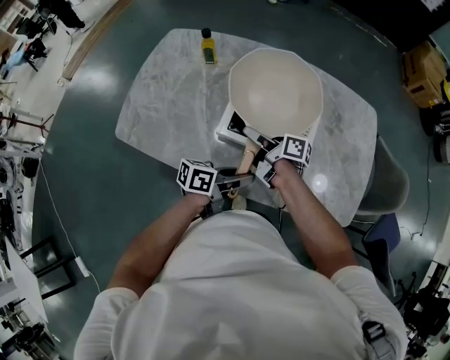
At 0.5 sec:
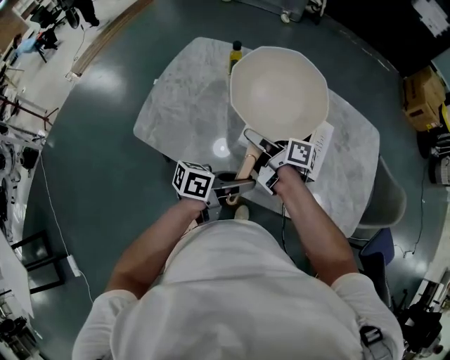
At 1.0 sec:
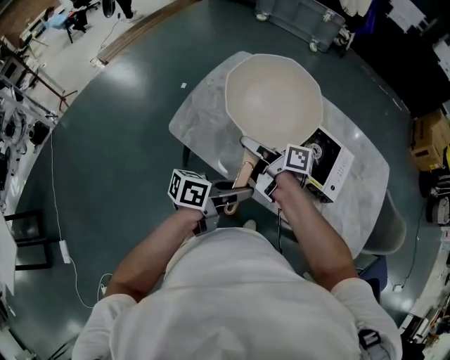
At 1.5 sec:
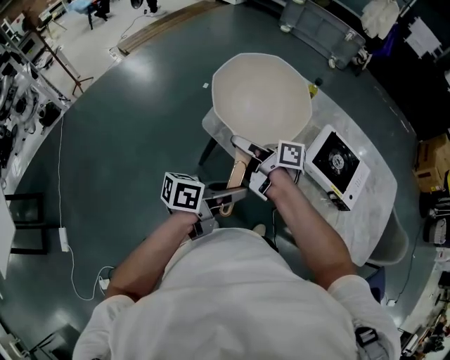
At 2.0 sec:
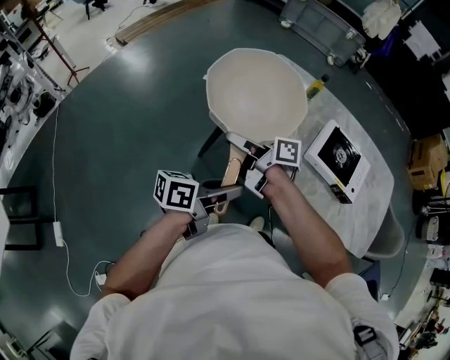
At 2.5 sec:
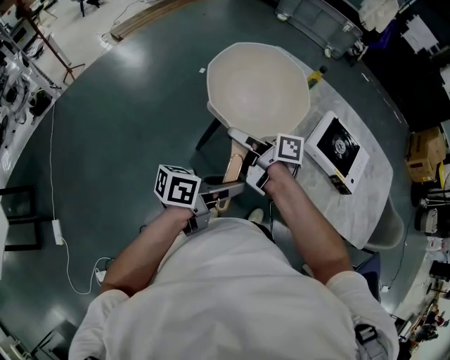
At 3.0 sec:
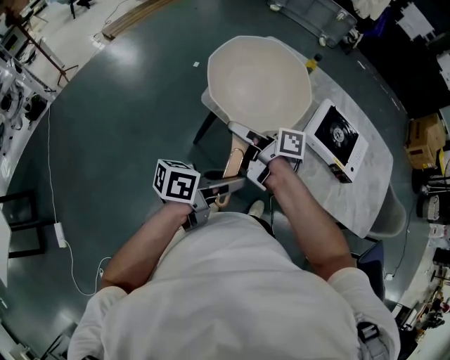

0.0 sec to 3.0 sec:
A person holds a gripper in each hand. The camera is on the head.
0.0 sec to 1.5 sec: The two grippers go roughly 35 cm to the left. The right gripper rotates about 20 degrees; the left gripper changes its angle by approximately 20 degrees.
1.5 sec to 3.0 sec: The right gripper moves approximately 5 cm. The left gripper shifts by approximately 5 cm.

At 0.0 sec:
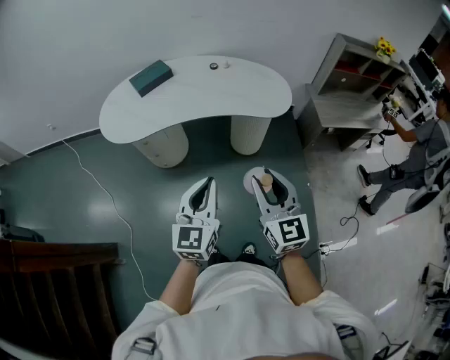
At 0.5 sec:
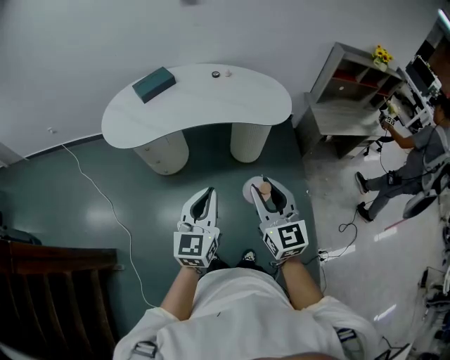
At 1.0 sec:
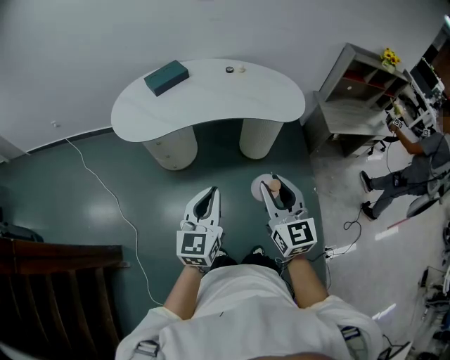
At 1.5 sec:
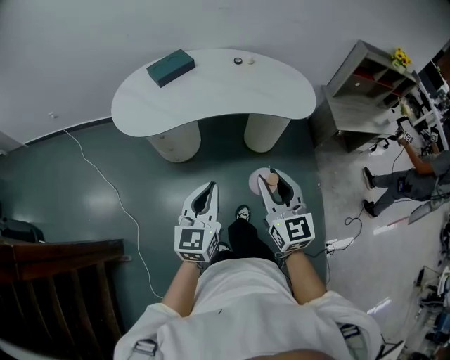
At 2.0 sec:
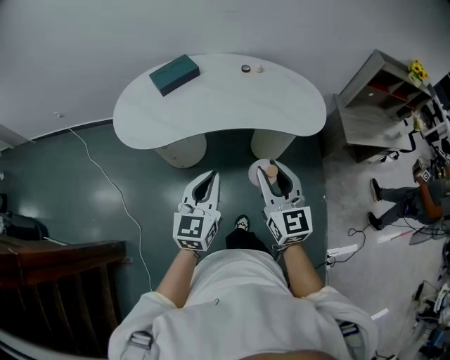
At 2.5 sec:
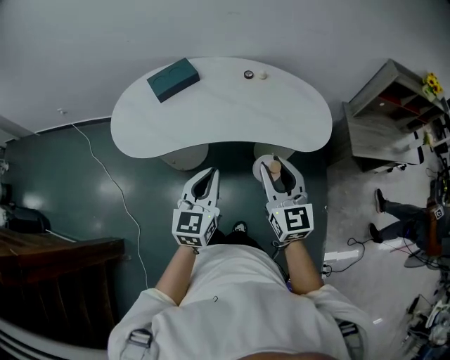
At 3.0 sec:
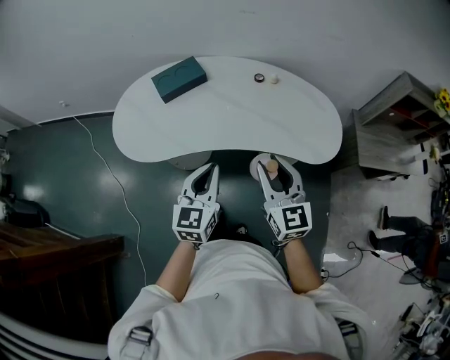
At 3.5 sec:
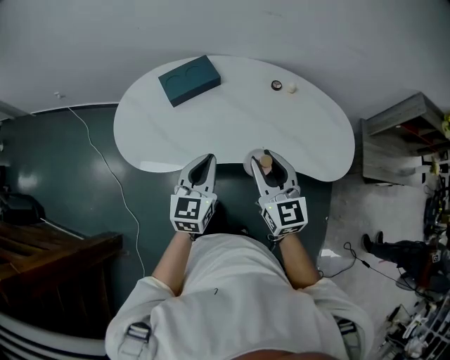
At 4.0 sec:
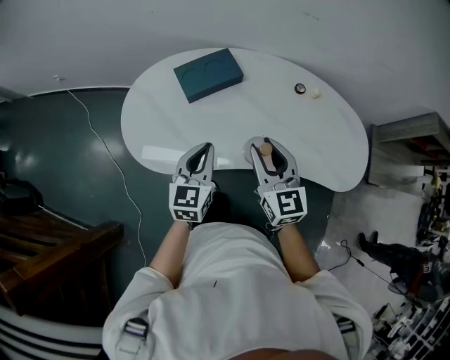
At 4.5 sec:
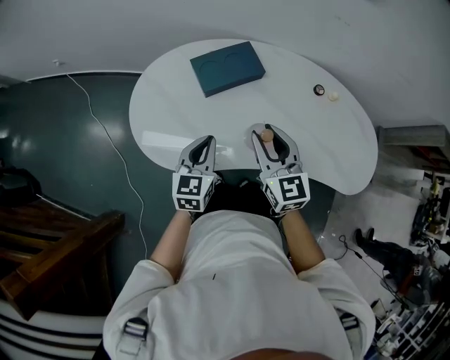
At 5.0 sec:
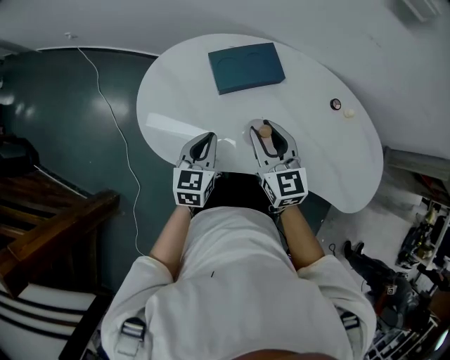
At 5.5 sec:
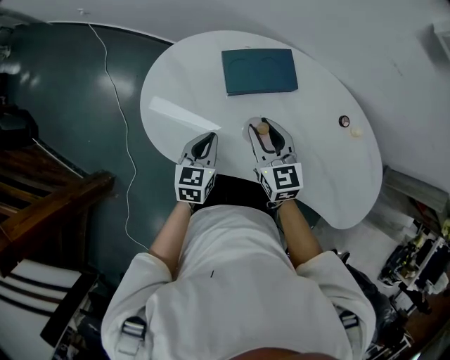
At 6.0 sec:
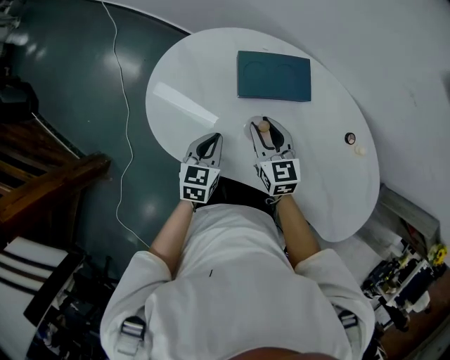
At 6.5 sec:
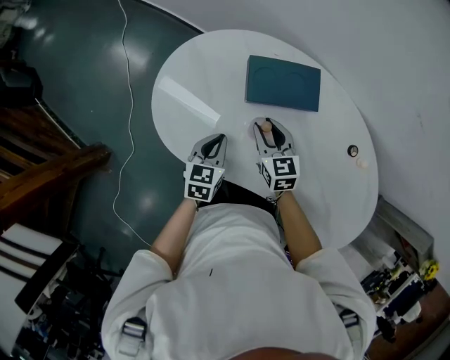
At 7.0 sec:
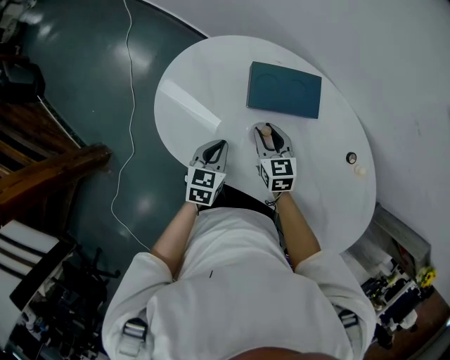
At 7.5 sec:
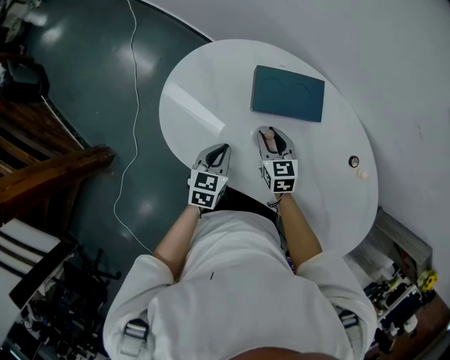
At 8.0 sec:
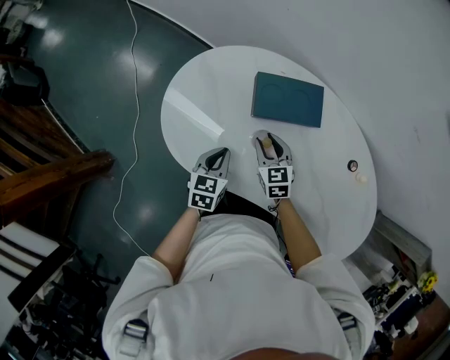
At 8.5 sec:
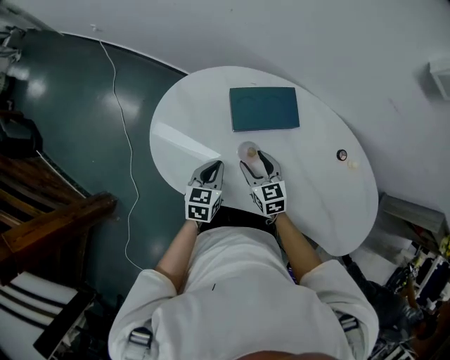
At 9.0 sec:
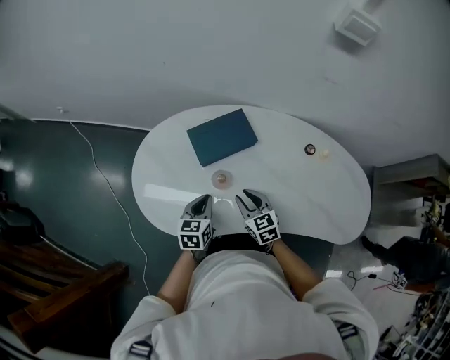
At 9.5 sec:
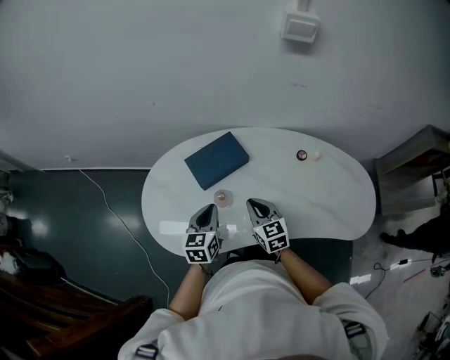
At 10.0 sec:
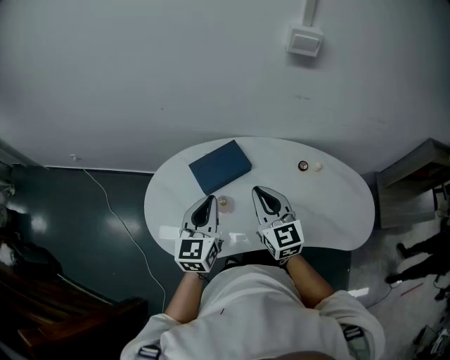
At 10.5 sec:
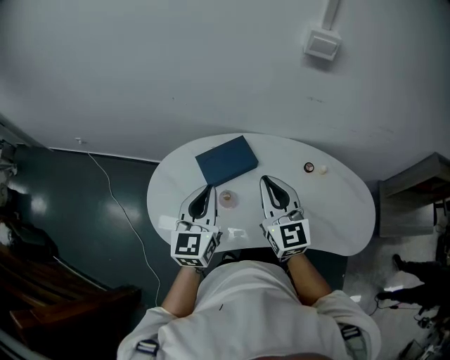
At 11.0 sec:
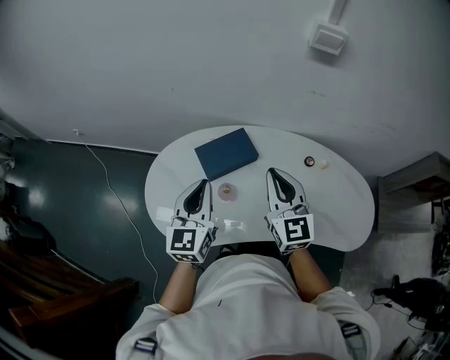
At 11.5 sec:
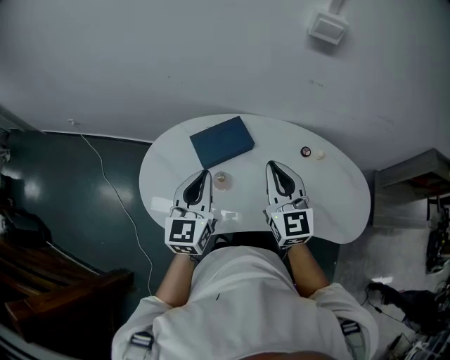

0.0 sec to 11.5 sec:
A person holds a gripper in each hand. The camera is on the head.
0.0 sec to 2.0 sec: Both grippers move forward and to the left, some 20 cm.
2.0 sec to 4.0 sec: Both grippers move forward and to the left, roughly 40 cm.
4.0 sec to 6.0 sec: The left gripper goes roughly 20 cm downward, forward and to the left, and changes its angle by some 30 degrees; the right gripper heads forward, downward and to the left, covering roughly 25 cm, and rotates approximately 30 degrees.
6.0 sec to 7.5 sec: The right gripper is displaced downward by roughly 5 cm.
7.5 sec to 9.5 sec: The right gripper is displaced upward, to the right and backward by about 15 cm, swivels approximately 30 degrees, and closes its fingers; the left gripper moves upward and to the right, roughly 15 cm, and swivels approximately 20 degrees.
9.5 sec to 11.5 sec: The grippers both shift upward by about 20 cm. The left gripper turns by about 20 degrees; the right gripper swivels some 20 degrees.

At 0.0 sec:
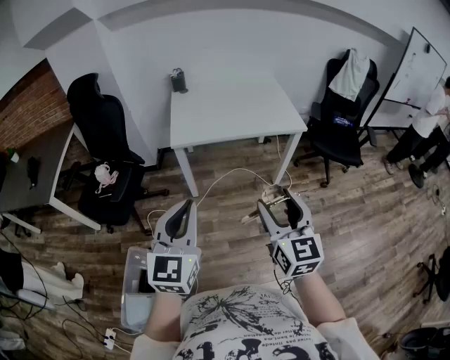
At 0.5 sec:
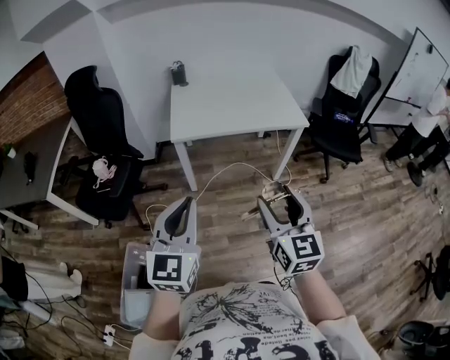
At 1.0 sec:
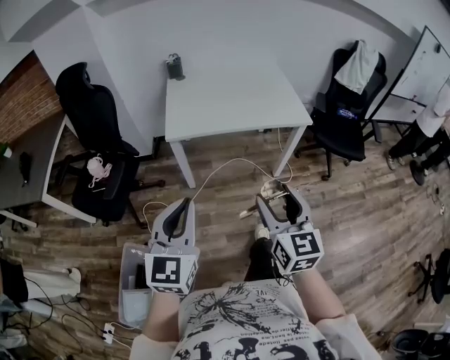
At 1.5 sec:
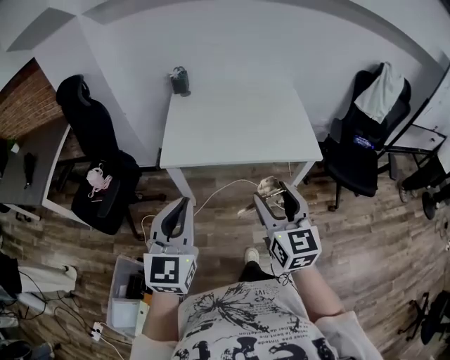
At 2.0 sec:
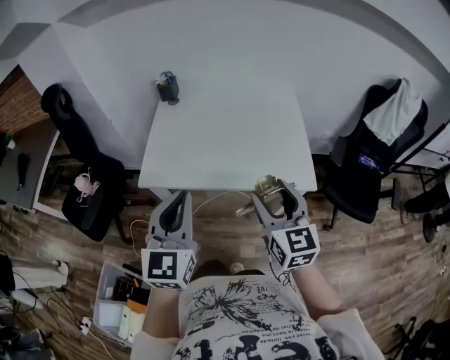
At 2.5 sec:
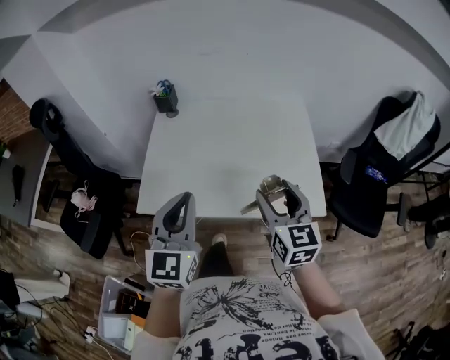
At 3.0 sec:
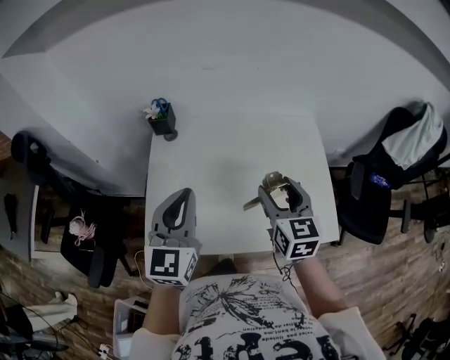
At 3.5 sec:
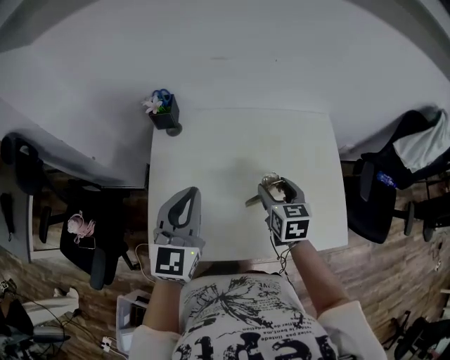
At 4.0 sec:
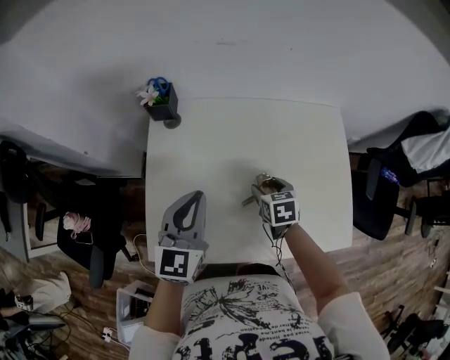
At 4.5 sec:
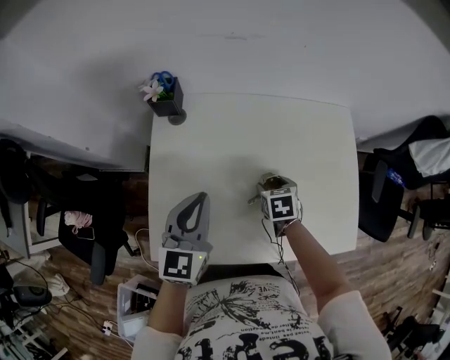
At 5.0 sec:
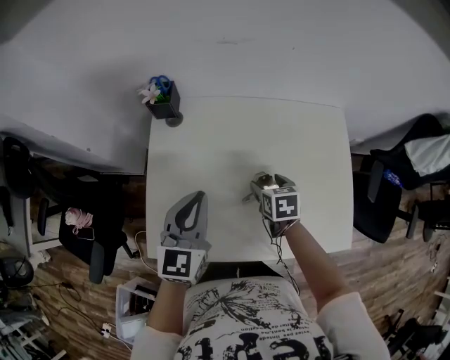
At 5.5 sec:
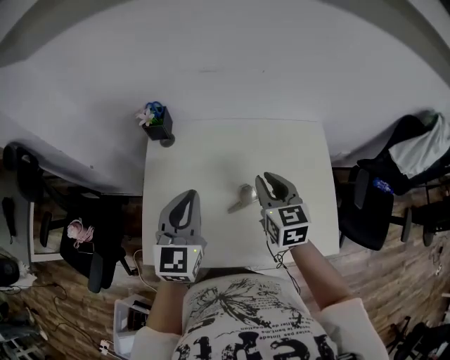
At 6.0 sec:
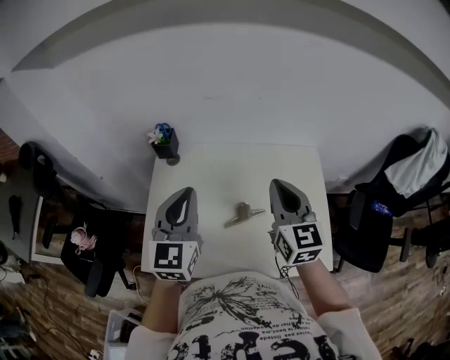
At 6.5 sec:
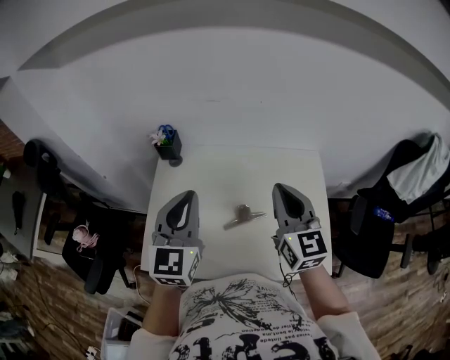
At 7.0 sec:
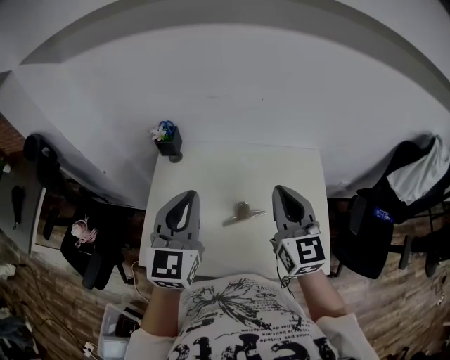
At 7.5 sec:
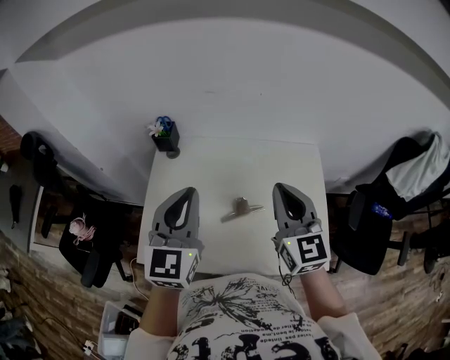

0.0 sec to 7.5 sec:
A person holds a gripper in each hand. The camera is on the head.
0.0 sec to 2.0 sec: The two grippers travel together, forward, some 40 cm.
2.0 sec to 4.0 sec: The right gripper is displaced forward and downward by approximately 50 cm, and points its fingers approximately 40 degrees further downward. Meanwhile the left gripper goes about 40 cm forward.
4.0 sec to 5.5 sec: The left gripper heads upward, covering roughly 5 cm; the right gripper travels upward by about 20 cm, changes its angle by about 30 degrees, and closes up.
5.5 sec to 7.5 sec: Both grippers move upward, about 10 cm. The right gripper turns by about 20 degrees.

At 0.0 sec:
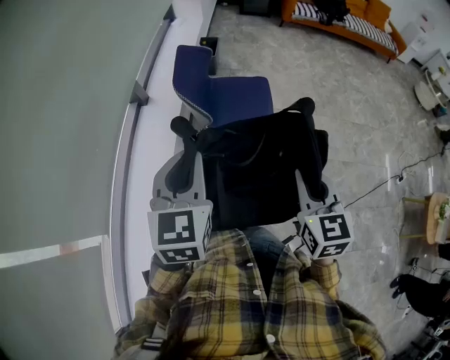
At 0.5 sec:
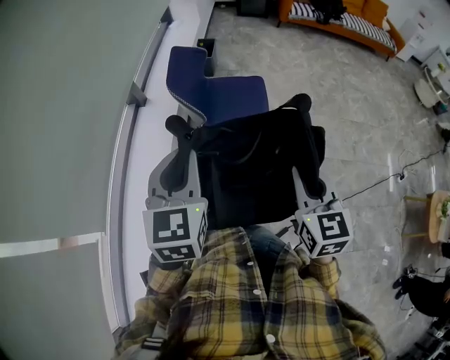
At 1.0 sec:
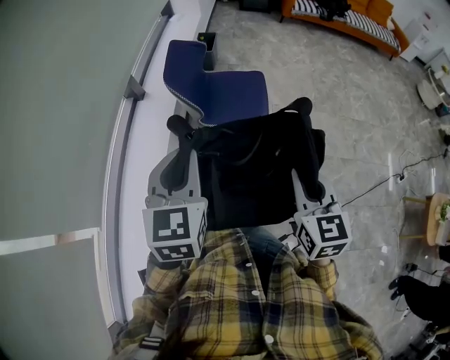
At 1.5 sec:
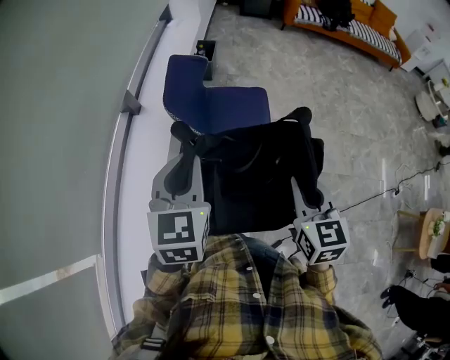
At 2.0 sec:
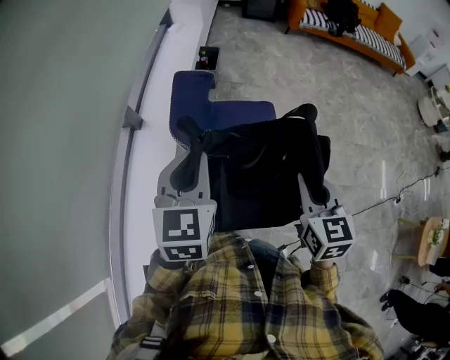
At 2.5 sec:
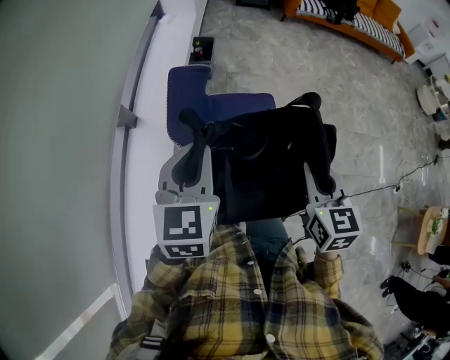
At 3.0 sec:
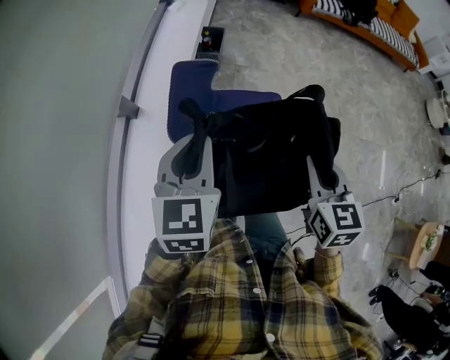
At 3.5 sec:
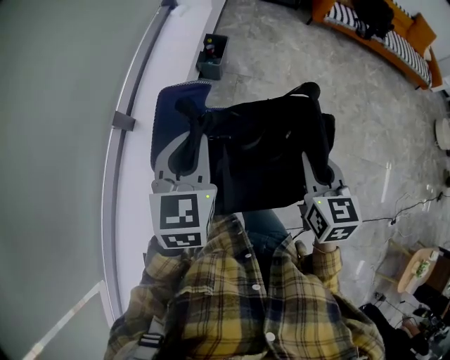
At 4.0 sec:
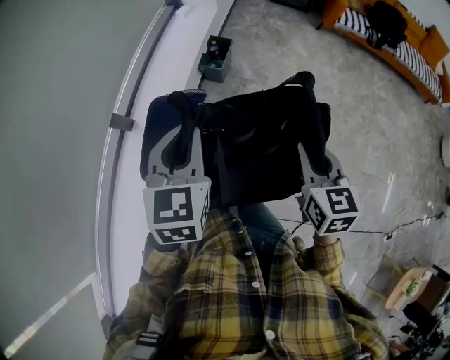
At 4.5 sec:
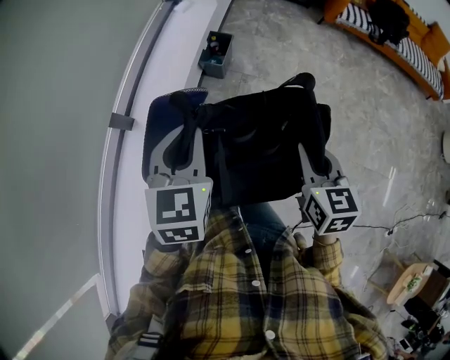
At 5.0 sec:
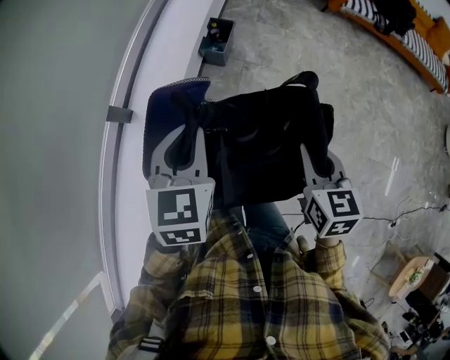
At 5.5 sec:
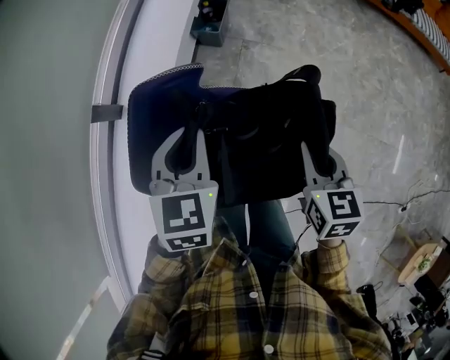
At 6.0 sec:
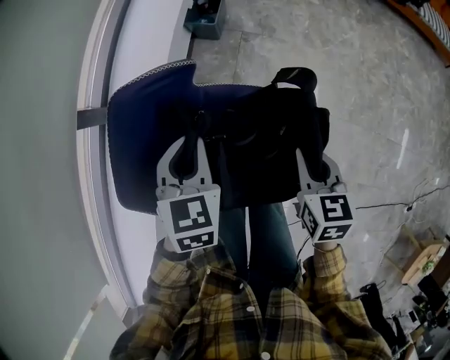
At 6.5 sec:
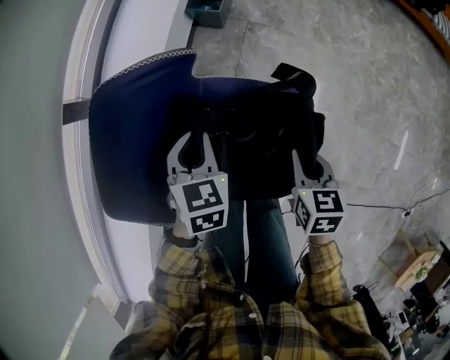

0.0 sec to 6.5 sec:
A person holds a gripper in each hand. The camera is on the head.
0.0 sec to 2.0 sec: Both grippers travel together forward, some 20 cm.
2.0 sec to 4.5 sec: The two grippers go some 30 cm forward.
4.5 sec to 6.5 sec: The grippers both shift downward by approximately 30 cm. The left gripper turns by about 20 degrees; the right gripper turns by approximately 20 degrees.
